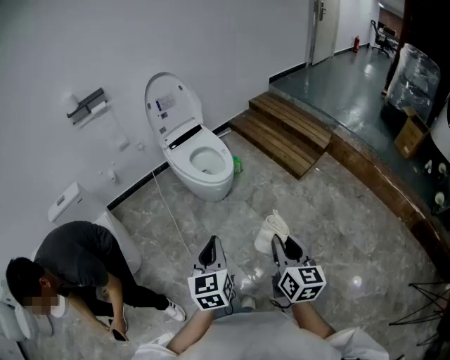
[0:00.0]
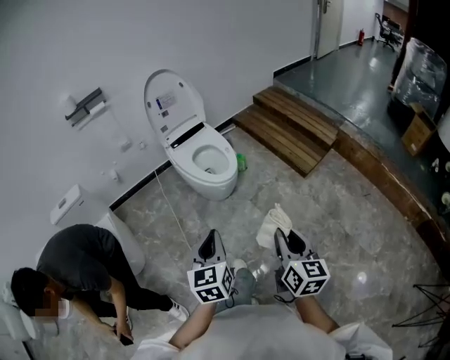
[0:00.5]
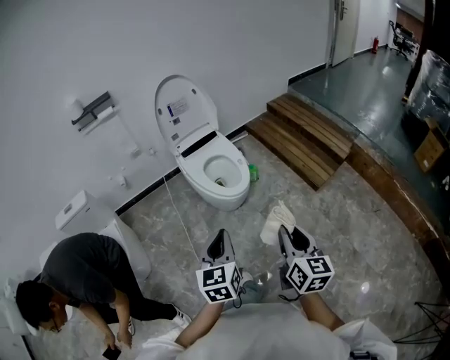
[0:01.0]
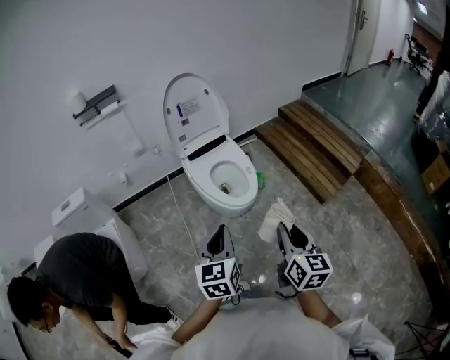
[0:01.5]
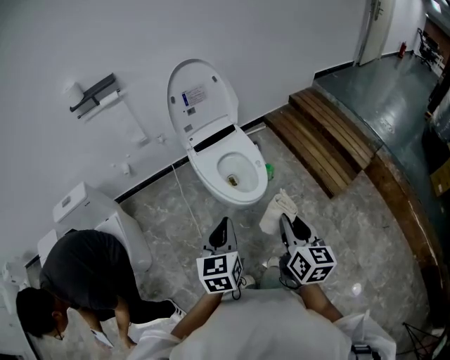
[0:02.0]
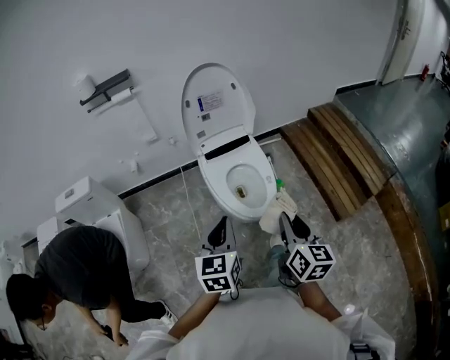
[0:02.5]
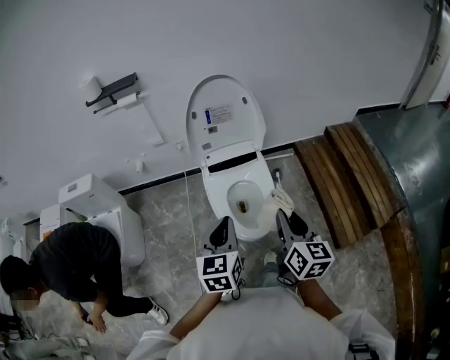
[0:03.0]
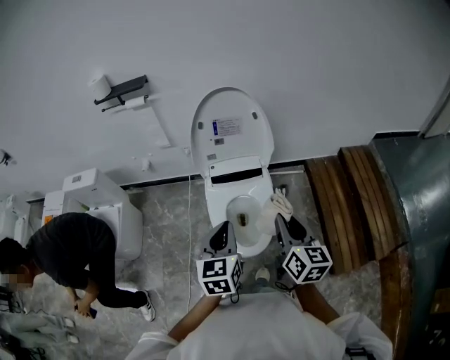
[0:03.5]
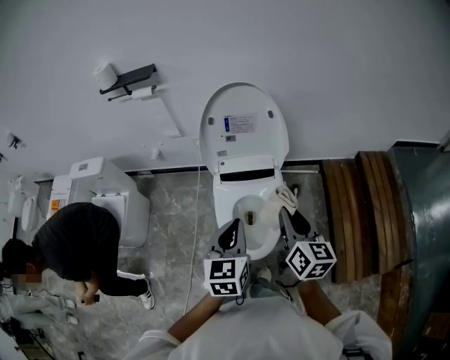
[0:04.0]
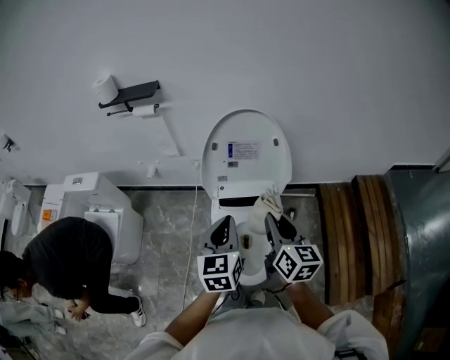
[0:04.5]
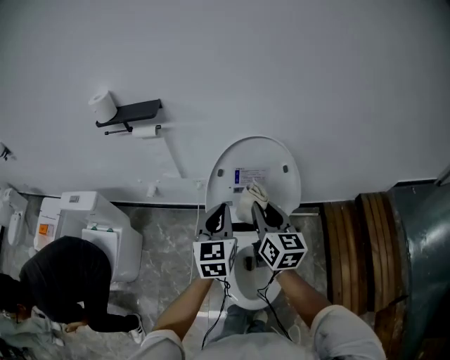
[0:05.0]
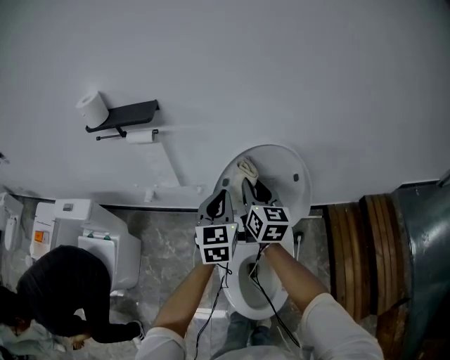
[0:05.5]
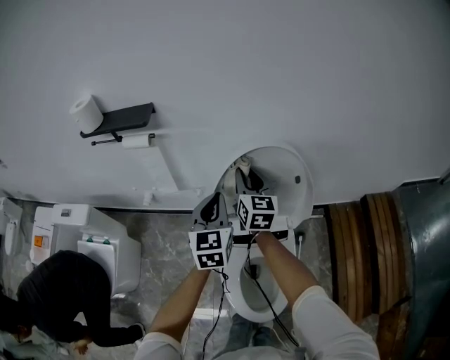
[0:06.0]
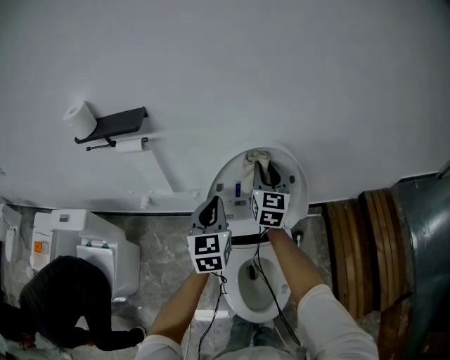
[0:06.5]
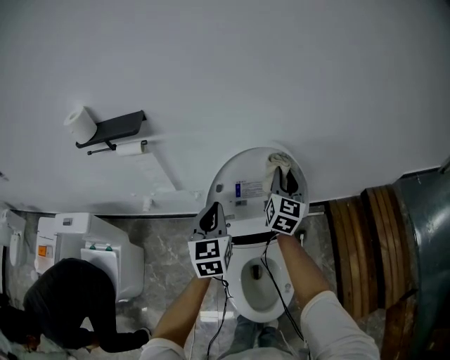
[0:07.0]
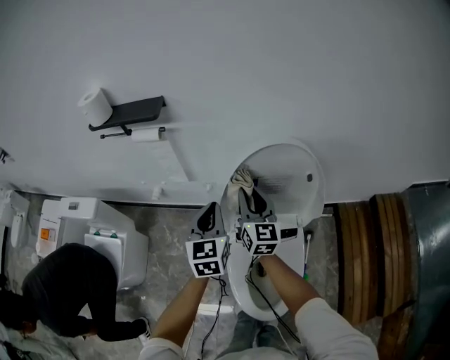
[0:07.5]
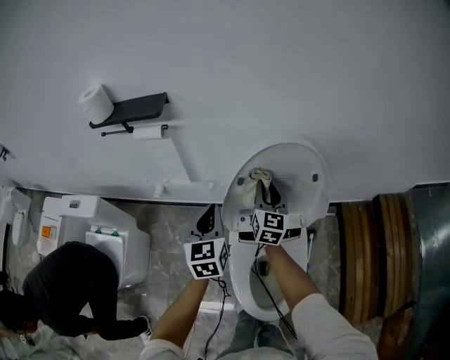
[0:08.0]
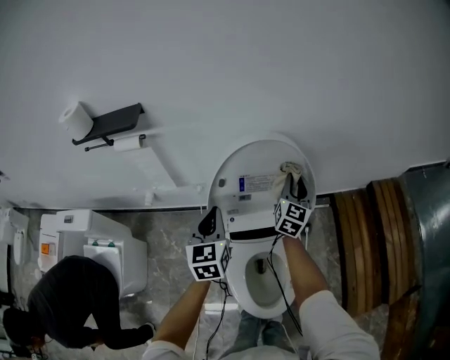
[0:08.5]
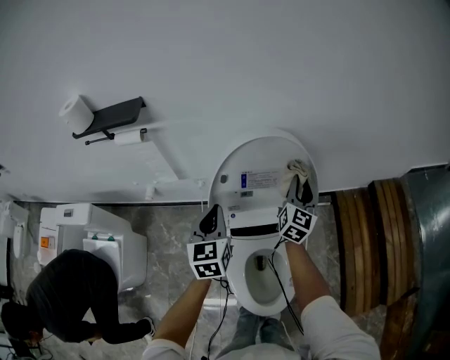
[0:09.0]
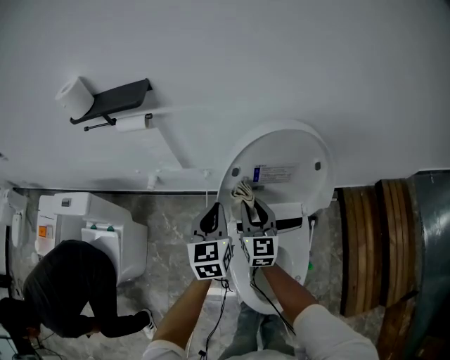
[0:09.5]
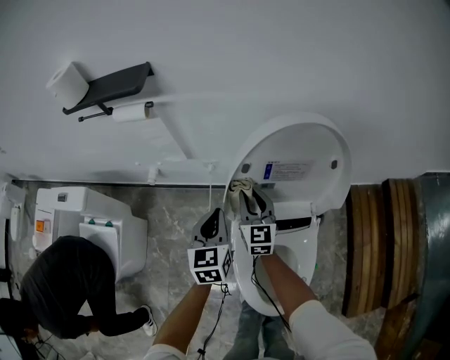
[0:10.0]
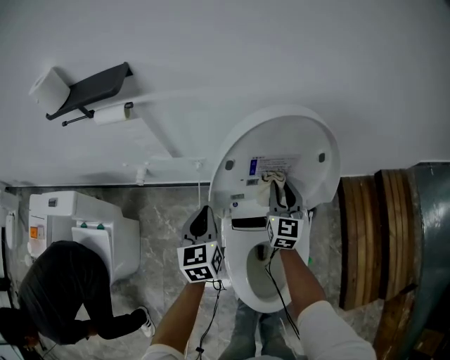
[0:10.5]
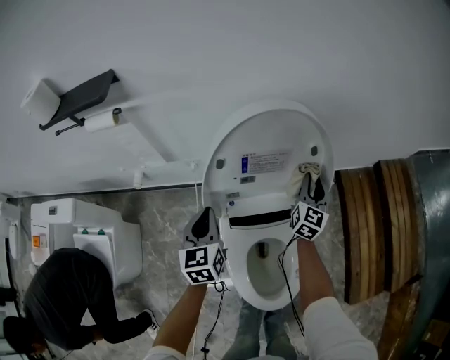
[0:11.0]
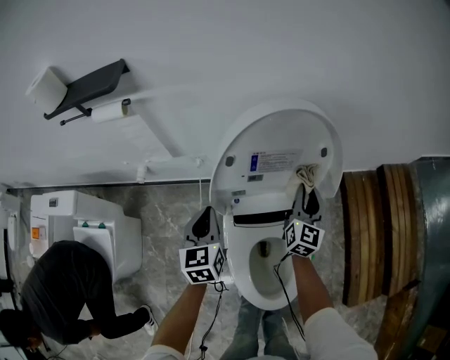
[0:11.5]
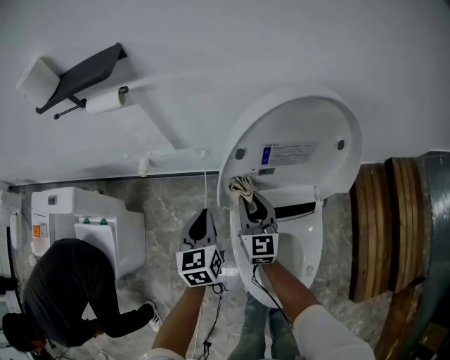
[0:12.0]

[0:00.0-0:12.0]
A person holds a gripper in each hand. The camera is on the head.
0:00.0 to 0:02.0: Both grippers travel together forward, approximately 30 cm.
0:02.0 to 0:04.0: The left gripper changes place by approximately 30 cm, and changes its angle by some 20 degrees; the right gripper moves roughly 40 cm, and changes its angle by approximately 30 degrees.
0:04.0 to 0:06.0: The two grippers go about 40 cm forward.
0:06.0 to 0:08.0: The left gripper moves to the left, roughly 5 cm; the right gripper goes left and right, about 20 cm each way, reversing 2 times.
0:08.0 to 0:10.0: The two grippers go roughly 10 cm downward. The right gripper moves approximately 15 cm to the right and comes back.
0:10.0 to 0:12.0: The left gripper moves downward, approximately 5 cm. The right gripper goes to the right and returns, some 30 cm each way.

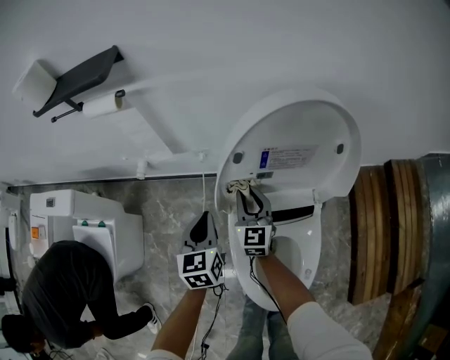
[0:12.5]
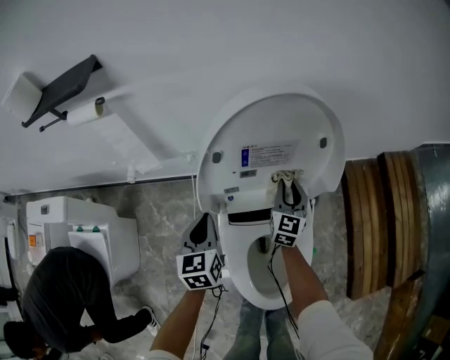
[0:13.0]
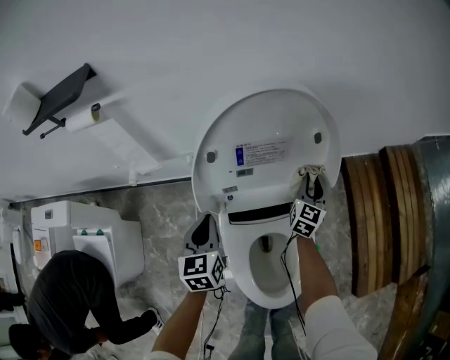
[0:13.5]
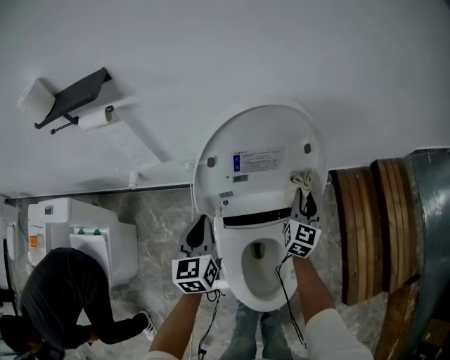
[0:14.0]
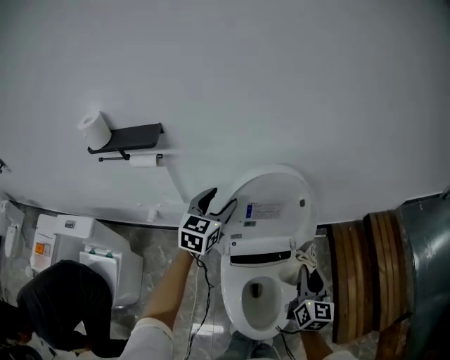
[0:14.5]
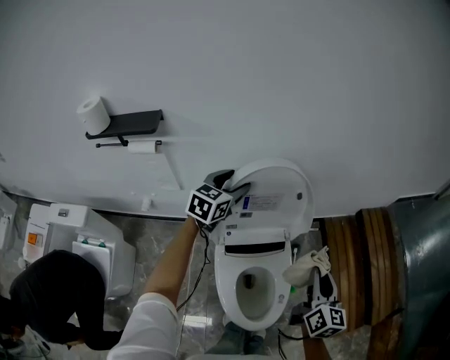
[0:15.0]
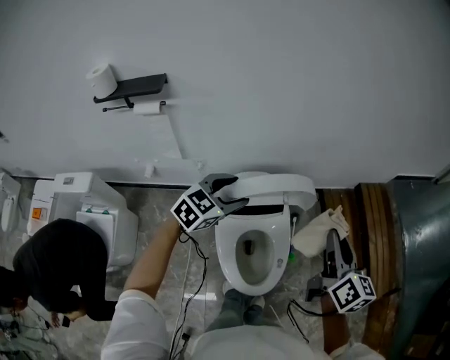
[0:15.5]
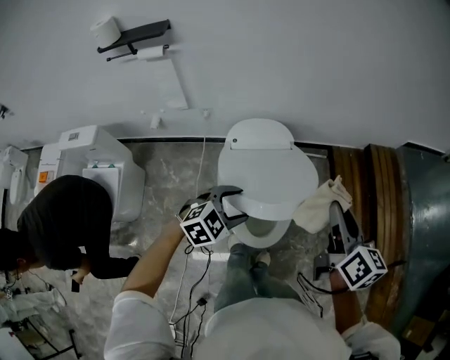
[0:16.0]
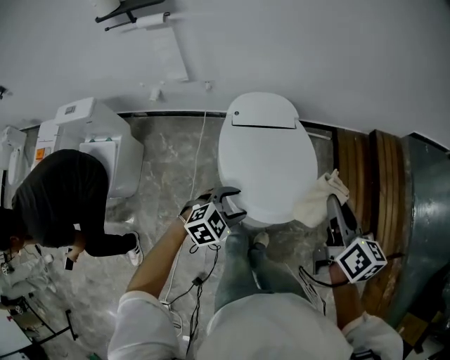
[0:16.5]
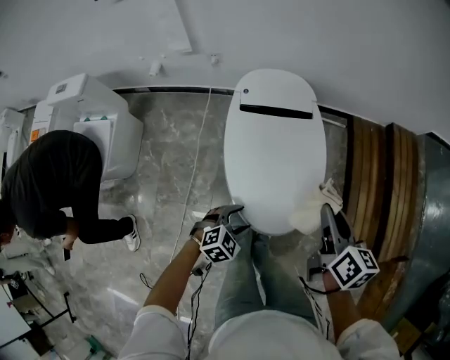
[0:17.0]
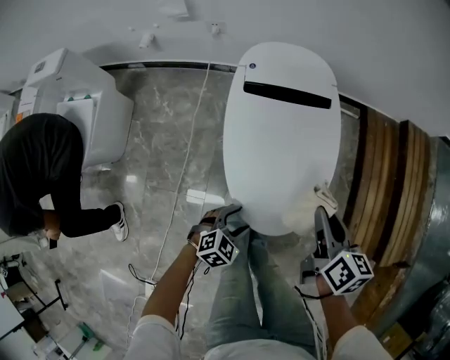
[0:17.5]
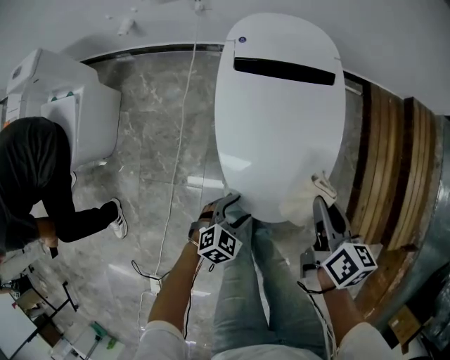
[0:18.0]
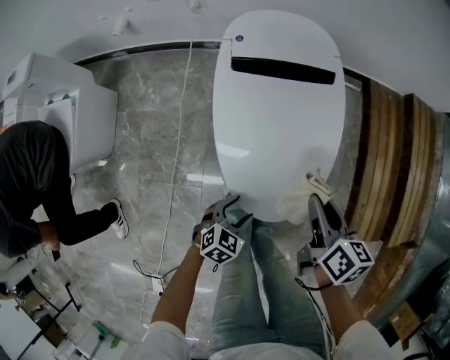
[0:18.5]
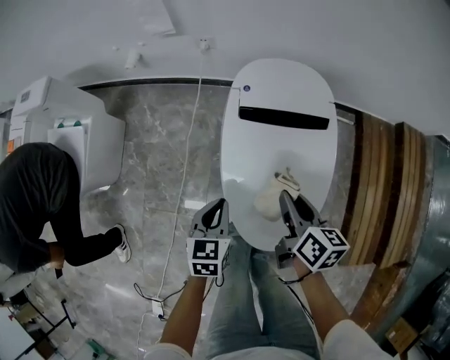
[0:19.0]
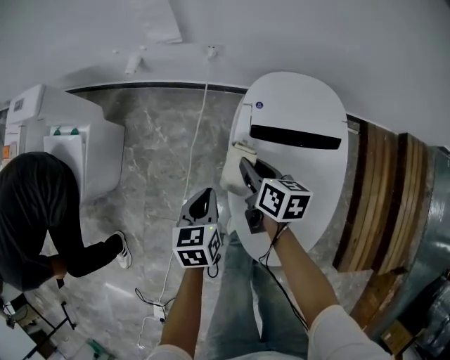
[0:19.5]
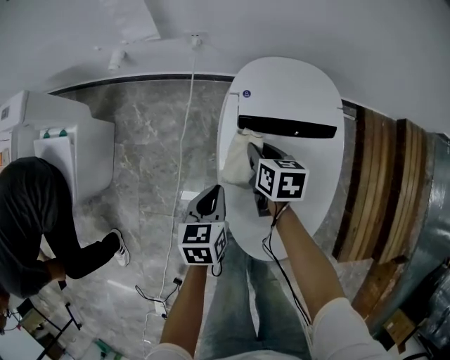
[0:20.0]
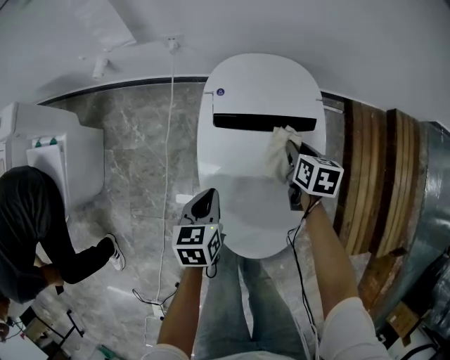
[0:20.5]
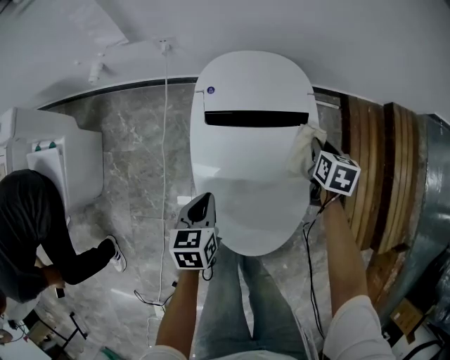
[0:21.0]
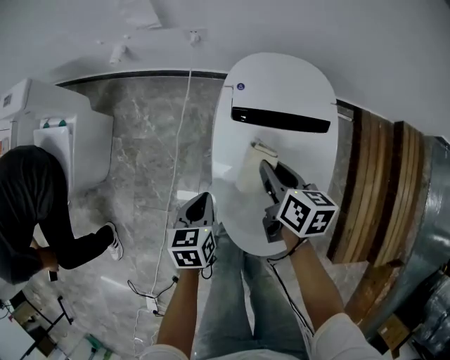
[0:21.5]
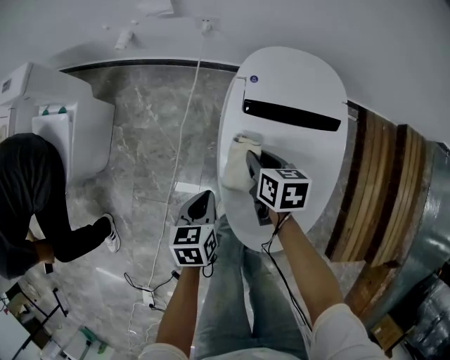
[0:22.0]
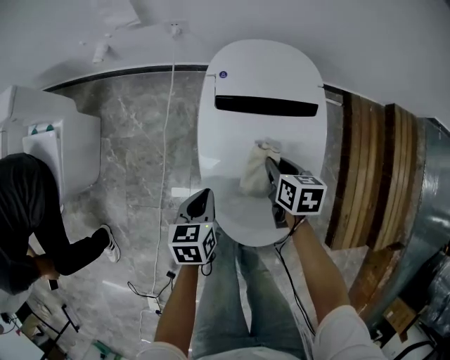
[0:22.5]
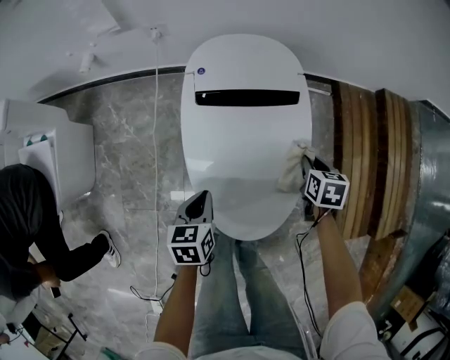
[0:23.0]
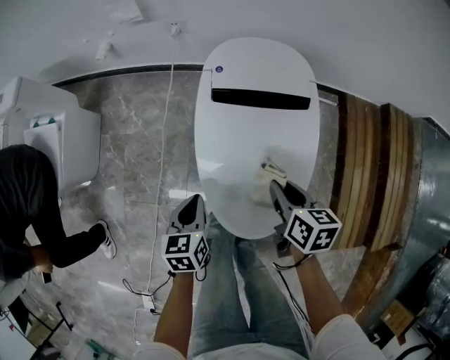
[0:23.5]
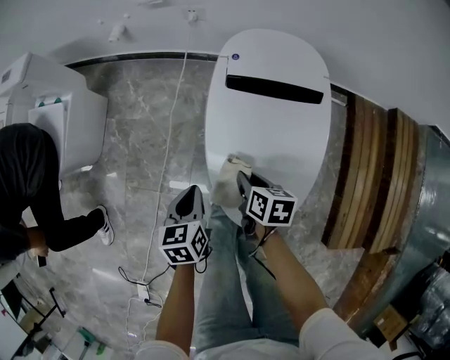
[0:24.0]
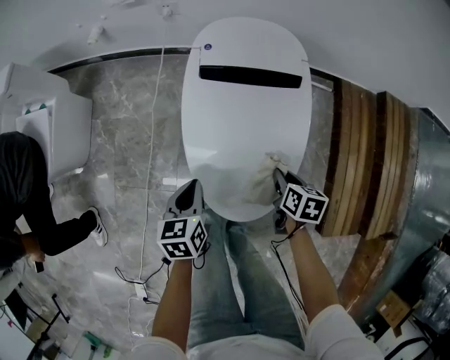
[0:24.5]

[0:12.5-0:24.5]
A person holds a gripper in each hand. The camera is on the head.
0:12.5 to 0:14.5: The left gripper shifts some 25 cm upward and forward, changes its angle by some 30 degrees, and opens. The right gripper is displaced to the right, upward and backward by roughly 35 cm, and swivels some 20 degrees.
0:14.5 to 0:16.5: The left gripper moves backward, to the right and downward, about 50 cm, and tips its fingers downward by about 30 degrees, while the right gripper shifts about 20 cm backward and to the right, and changes its angle by approximately 20 degrees.
0:16.5 to 0:18.5: The grippers both shift downward by approximately 30 cm. The left gripper swivels approximately 30 degrees.
0:18.5 to 0:20.5: The right gripper ends up some 30 cm from where it was, and turns by some 20 degrees; the left gripper shifts by some 25 cm, changes its angle by some 40 degrees, and closes up.
0:22.5 to 0:24.5: The right gripper goes upward and returns, approximately 5 cm each way. The left gripper shifts by approximately 5 cm.

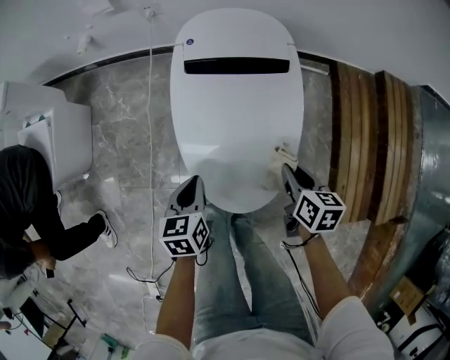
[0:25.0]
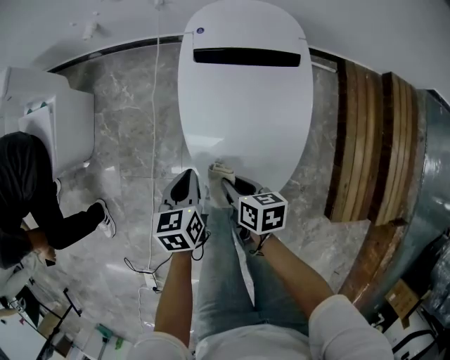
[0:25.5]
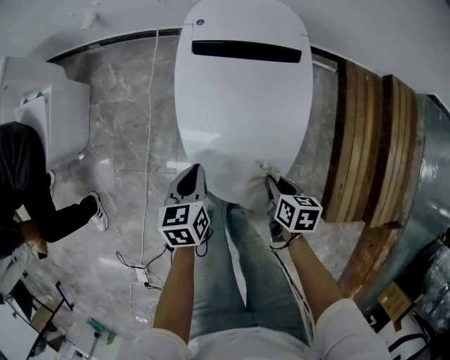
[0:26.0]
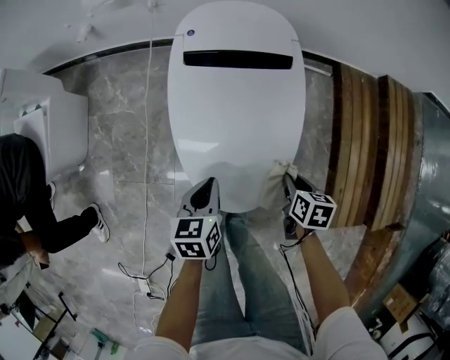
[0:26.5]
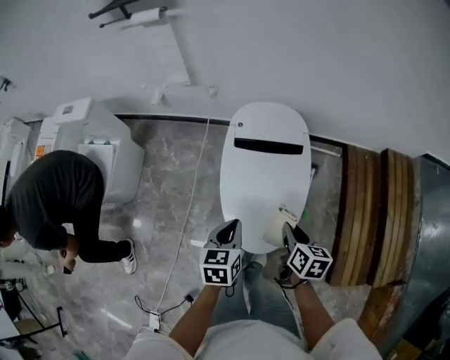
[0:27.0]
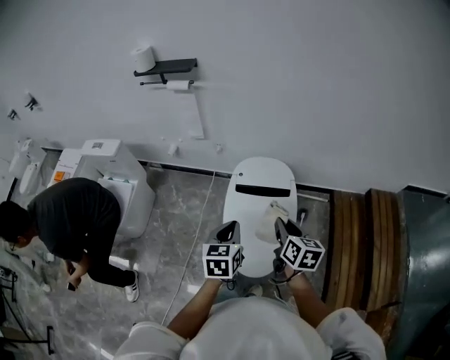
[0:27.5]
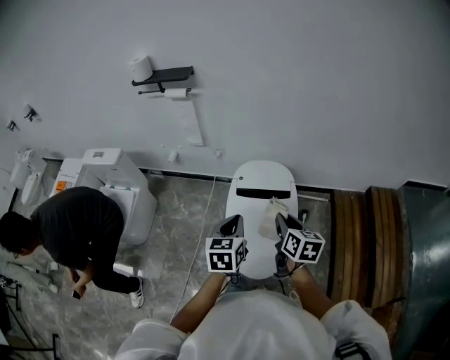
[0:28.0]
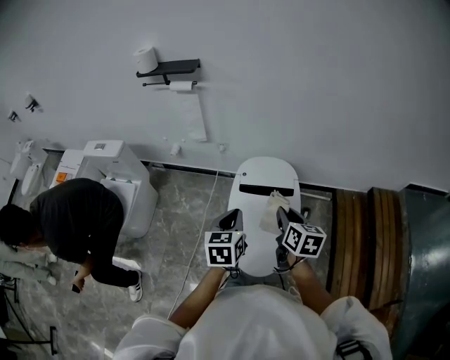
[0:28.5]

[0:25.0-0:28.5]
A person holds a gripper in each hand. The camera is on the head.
0:25.0 to 0:27.0: The left gripper shifts roughly 15 cm upward. The right gripper swings left and right, roughly 20 cm each way, with 2 reversals.
0:27.0 to 0:28.5: The right gripper shifts about 20 cm upward and forward. The left gripper shifts some 20 cm upward.
